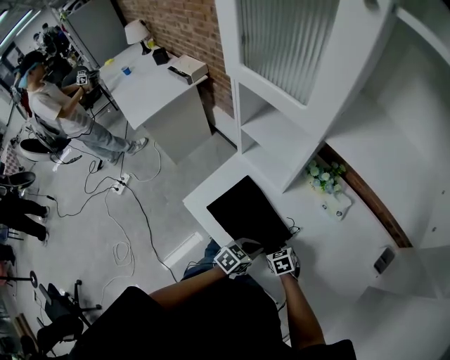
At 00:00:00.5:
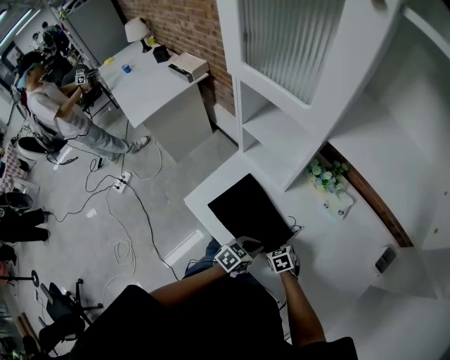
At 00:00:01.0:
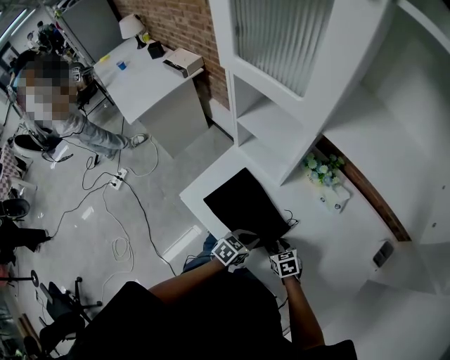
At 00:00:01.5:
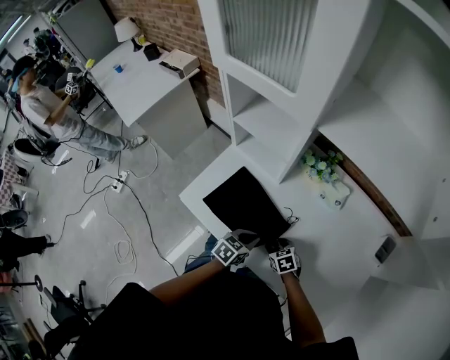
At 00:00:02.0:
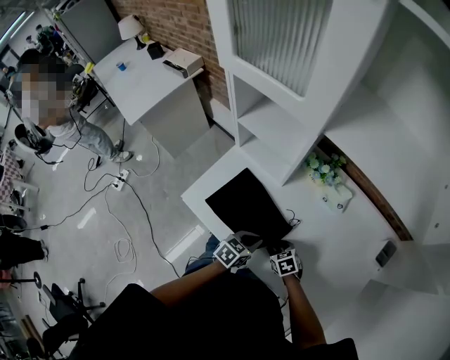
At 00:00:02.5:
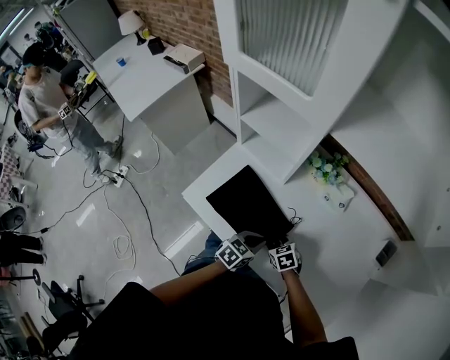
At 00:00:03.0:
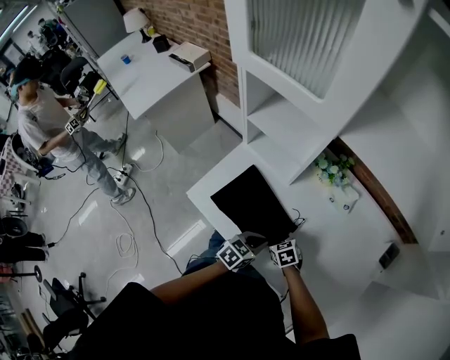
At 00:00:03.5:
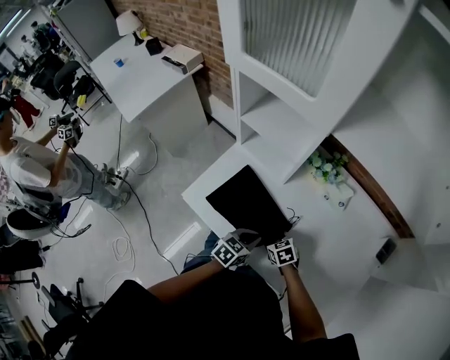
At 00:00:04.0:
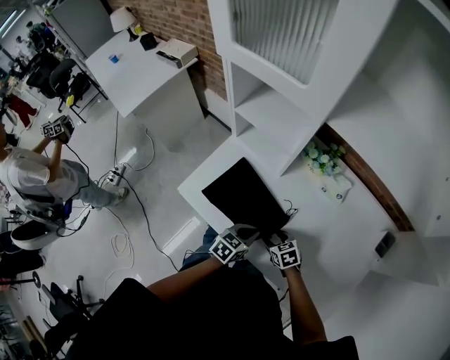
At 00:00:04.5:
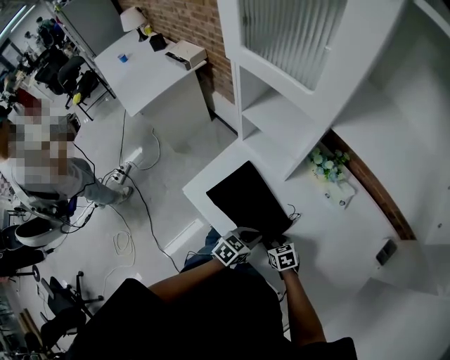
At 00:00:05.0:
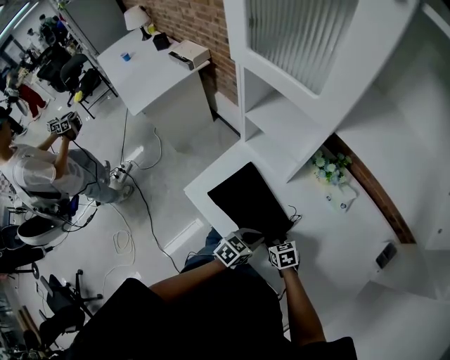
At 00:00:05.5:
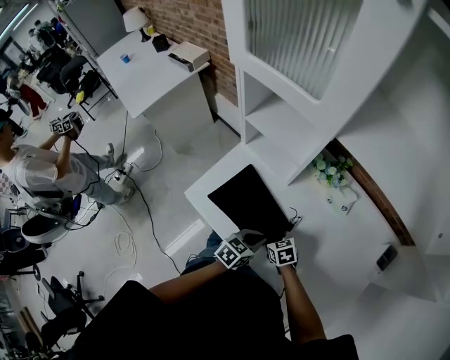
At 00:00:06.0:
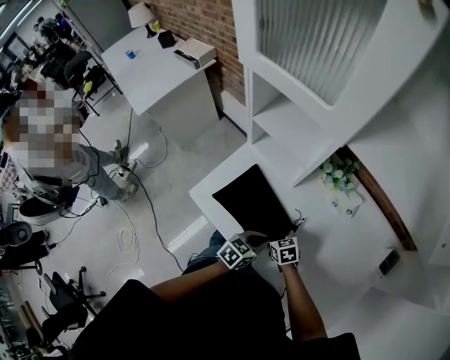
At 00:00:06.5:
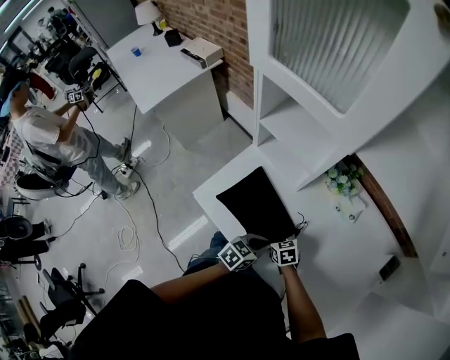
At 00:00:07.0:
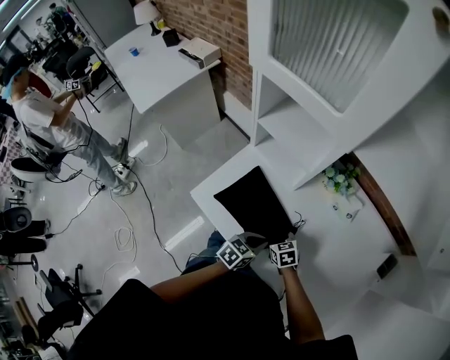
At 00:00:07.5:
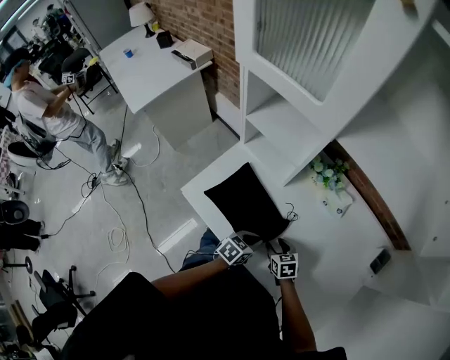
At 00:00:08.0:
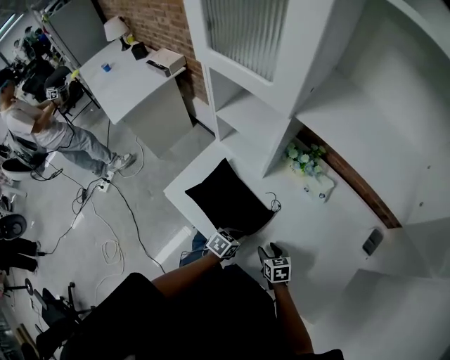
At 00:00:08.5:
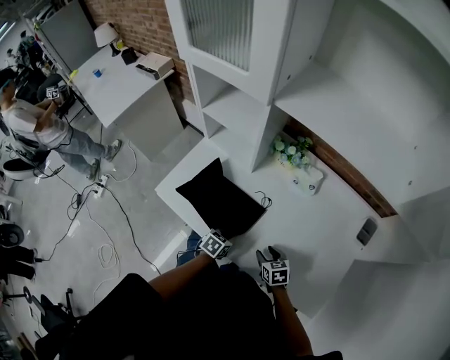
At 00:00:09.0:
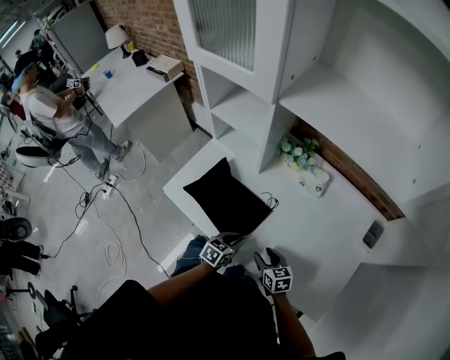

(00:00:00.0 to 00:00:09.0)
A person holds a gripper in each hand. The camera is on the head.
00:00:00.0 - 00:00:04.5: The grippers stay close to where they were, moving slightly.
00:00:04.5 - 00:00:07.0: The right gripper goes roughly 5 cm forward.
00:00:07.0 - 00:00:09.0: The right gripper shifts some 20 cm to the right and backward, and changes its angle by about 20 degrees. Meanwhile the left gripper goes some 10 cm downward, backward and to the right.

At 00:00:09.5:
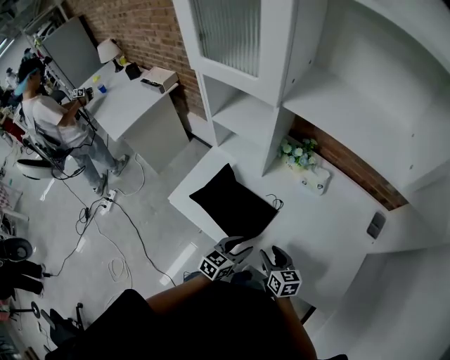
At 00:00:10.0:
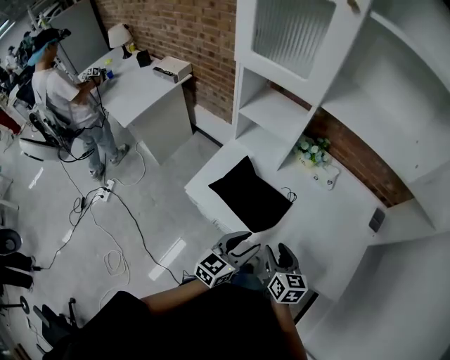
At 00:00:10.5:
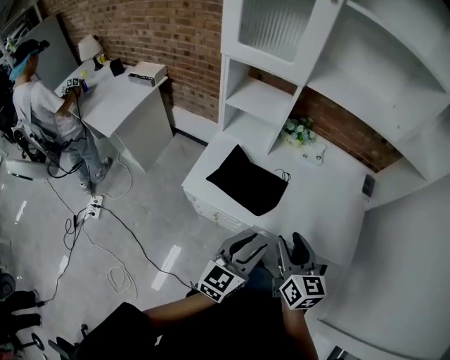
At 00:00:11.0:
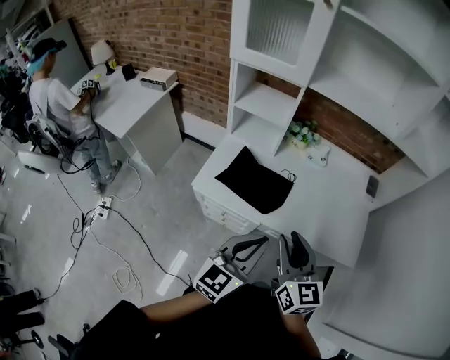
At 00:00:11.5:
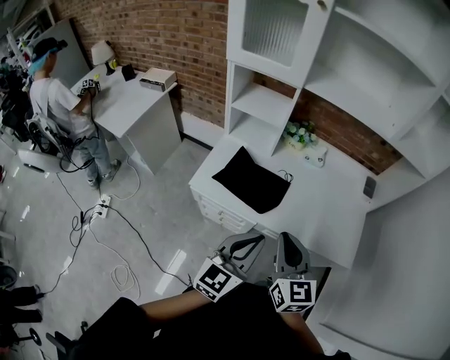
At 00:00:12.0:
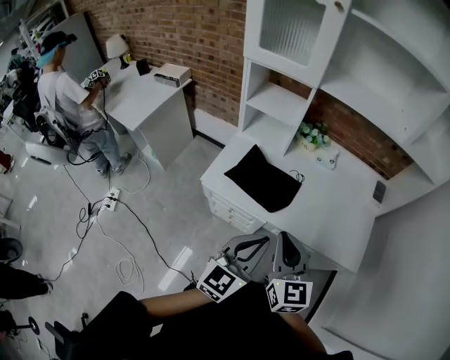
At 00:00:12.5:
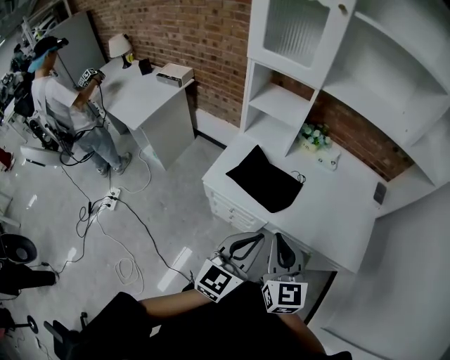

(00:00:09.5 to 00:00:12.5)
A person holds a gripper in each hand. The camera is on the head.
00:00:09.5 - 00:00:11.0: The right gripper goes roughly 35 cm upward, backward and to the left, and rotates about 30 degrees; the left gripper is displaced upward and backward by approximately 35 cm, rotates approximately 30 degrees, and closes.
00:00:11.0 - 00:00:12.5: The right gripper closes its fingers.

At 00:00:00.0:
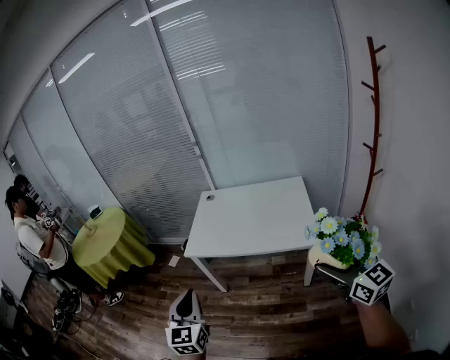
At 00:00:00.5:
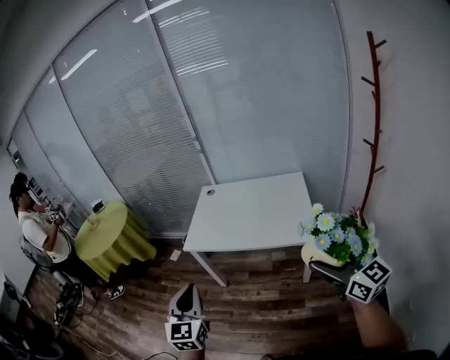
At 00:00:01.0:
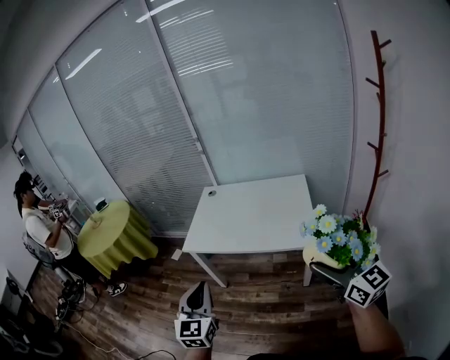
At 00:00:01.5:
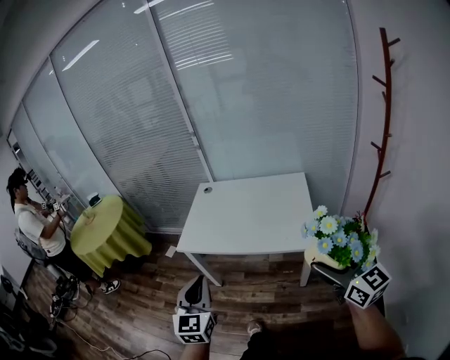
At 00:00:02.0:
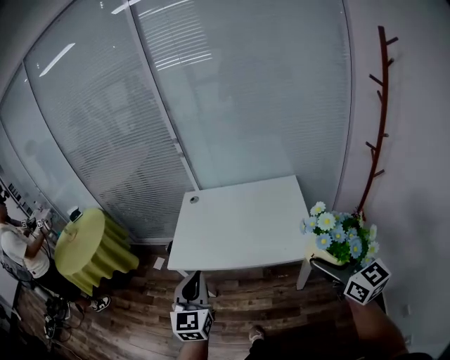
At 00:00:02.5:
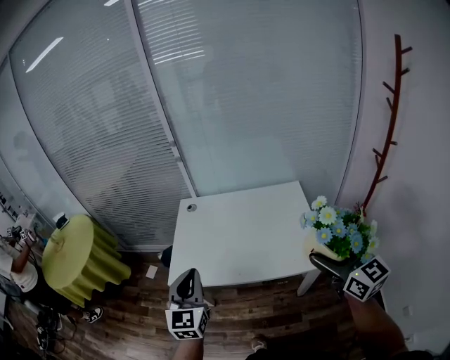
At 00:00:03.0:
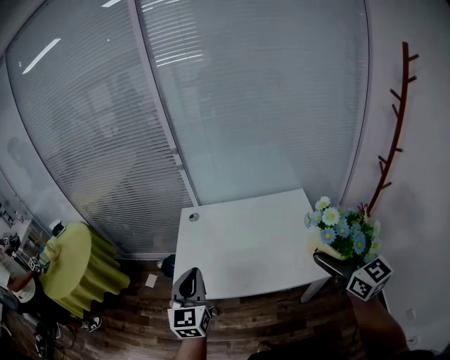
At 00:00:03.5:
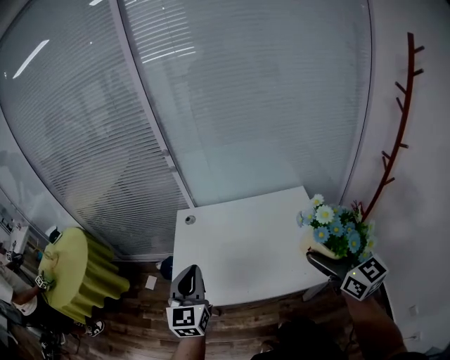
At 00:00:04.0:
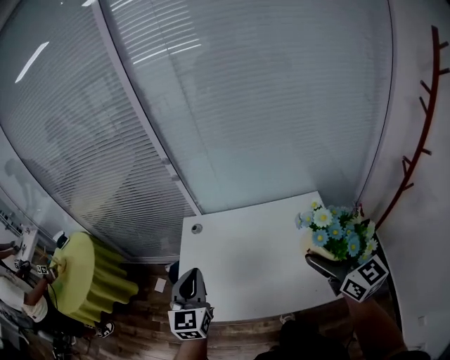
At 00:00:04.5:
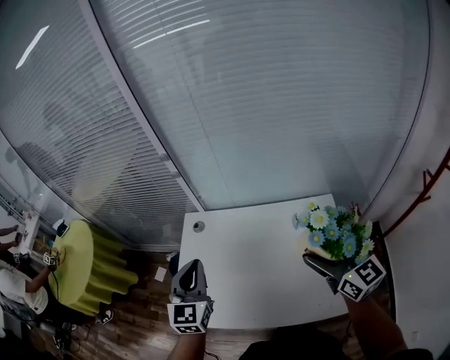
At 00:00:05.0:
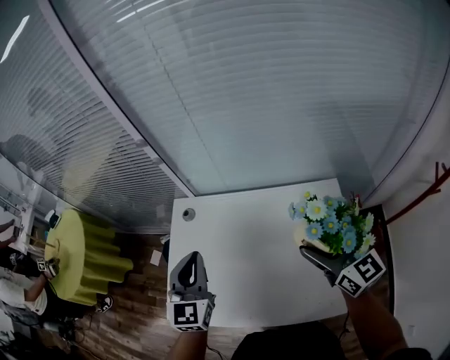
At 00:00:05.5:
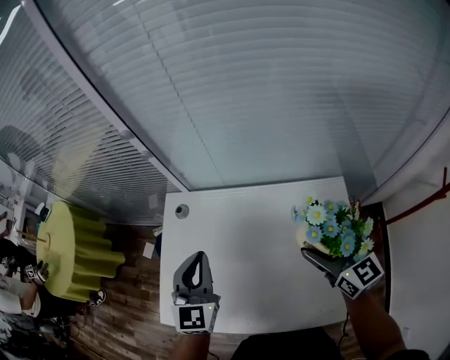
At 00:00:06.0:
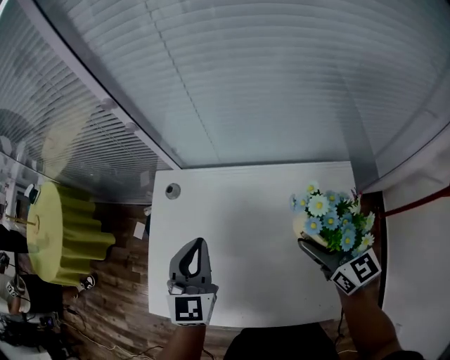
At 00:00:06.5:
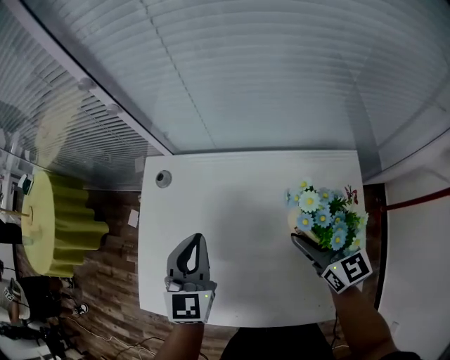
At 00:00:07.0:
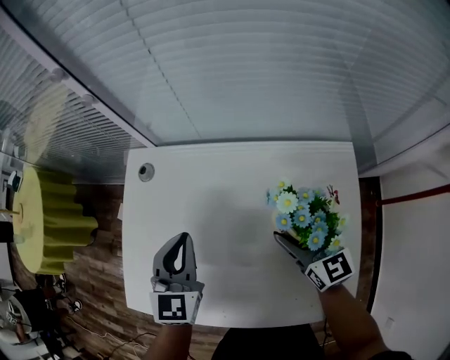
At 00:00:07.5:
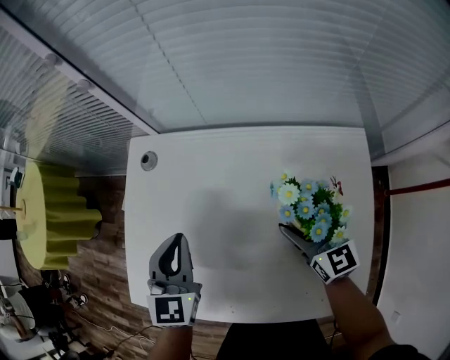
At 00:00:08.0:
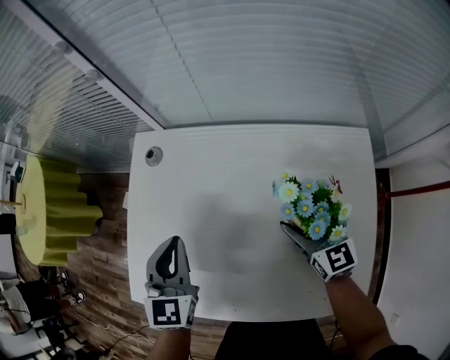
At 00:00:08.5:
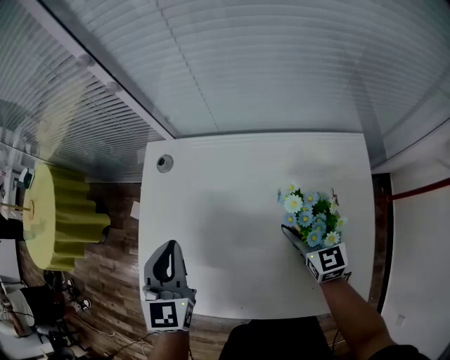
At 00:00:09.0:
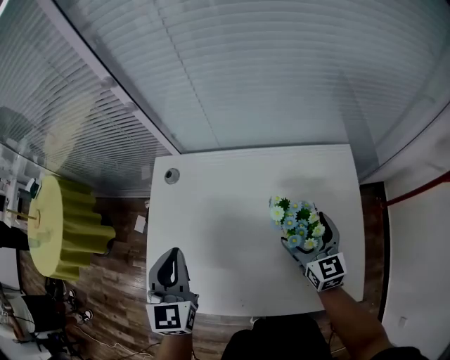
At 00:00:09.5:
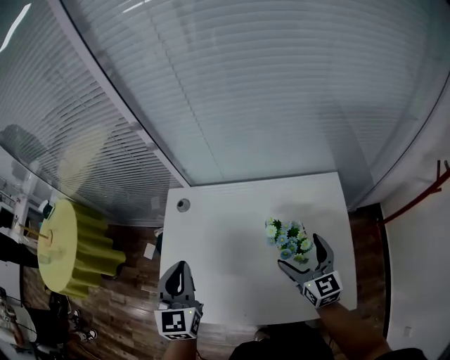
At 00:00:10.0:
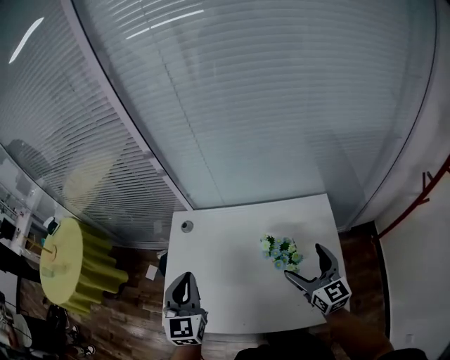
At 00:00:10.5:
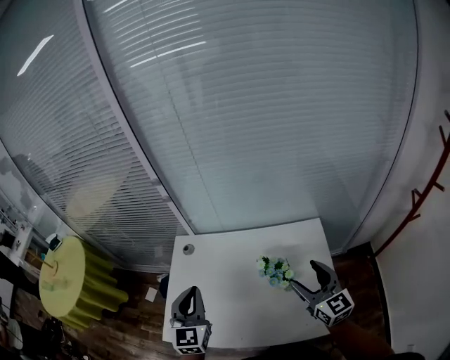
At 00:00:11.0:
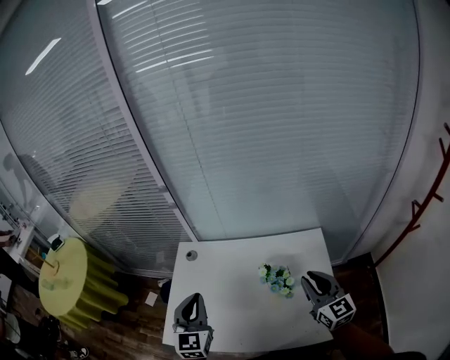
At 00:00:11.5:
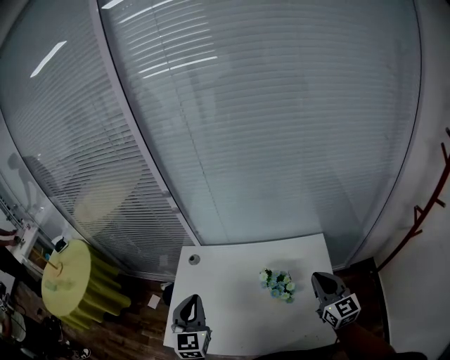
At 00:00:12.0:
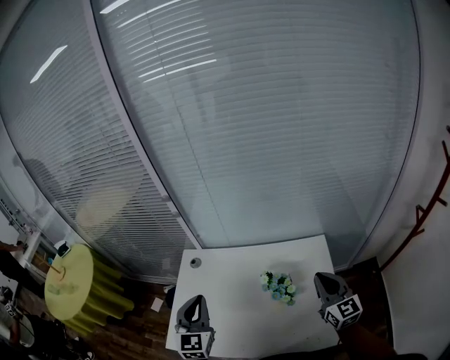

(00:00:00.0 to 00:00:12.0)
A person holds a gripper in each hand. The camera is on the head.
00:00:00.0 - 00:00:02.0: The right gripper heads forward, covering approximately 10 cm, while the left gripper heads forward and to the right, covering approximately 20 cm.
00:00:02.0 - 00:00:04.0: The two grippers go approximately 30 cm forward.
00:00:04.0 - 00:00:06.0: The left gripper shifts about 20 cm forward, to the right and downward; the right gripper heads forward and downward, covering about 25 cm.
00:00:06.0 - 00:00:08.0: The right gripper moves downward, about 15 cm. The left gripper goes approximately 10 cm downward.
00:00:08.0 - 00:00:10.0: The left gripper heads upward, covering roughly 15 cm. The right gripper travels upward and backward by roughly 20 cm.
00:00:10.0 - 00:00:12.0: The right gripper travels to the right by approximately 5 cm, and closes.

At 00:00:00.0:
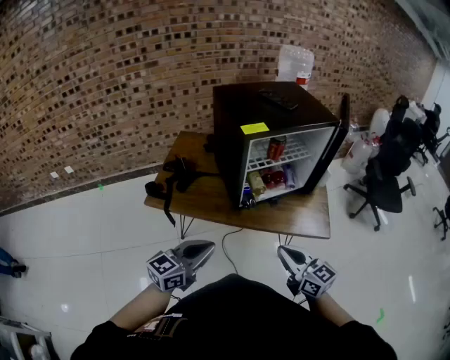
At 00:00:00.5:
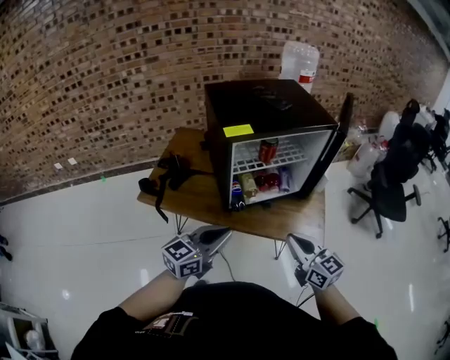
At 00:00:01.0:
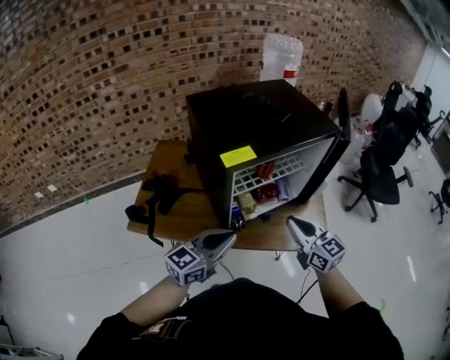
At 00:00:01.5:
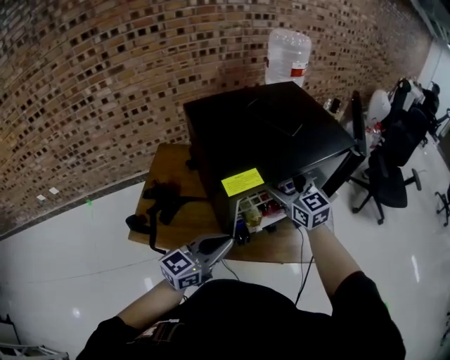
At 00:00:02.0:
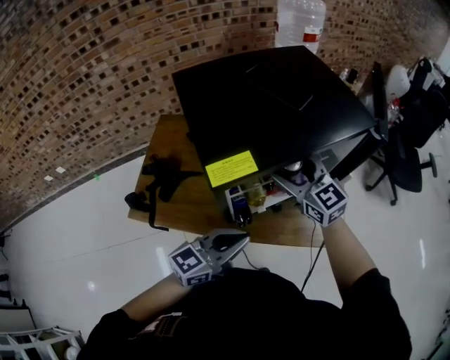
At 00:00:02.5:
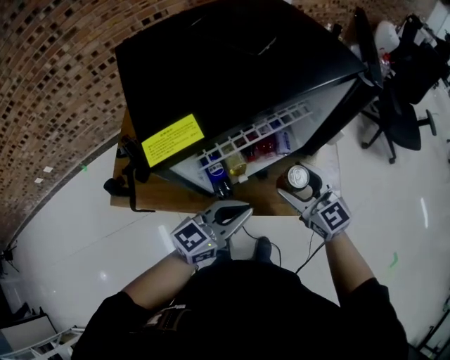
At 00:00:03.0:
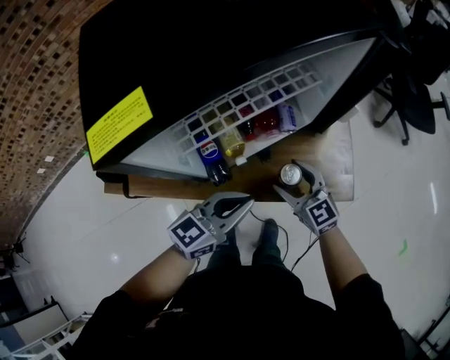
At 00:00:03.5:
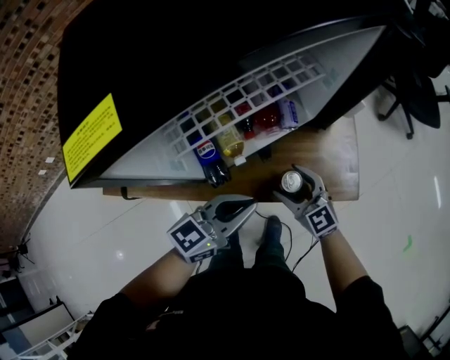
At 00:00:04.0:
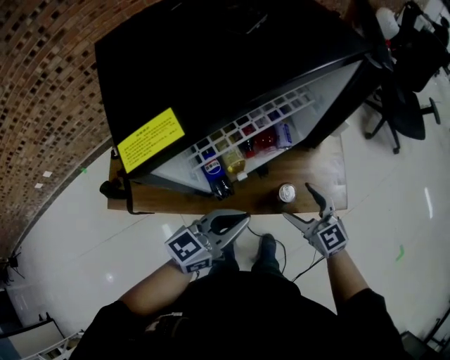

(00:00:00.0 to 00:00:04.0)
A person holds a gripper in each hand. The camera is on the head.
00:00:00.0 - 00:00:02.0: The left gripper moves forward and to the right, some 30 cm. Meanwhile the right gripper moves forward, about 40 cm, turns by some 20 degrees, and opens its fingers.
00:00:02.0 - 00:00:04.0: The right gripper is displaced downward, to the right and backward by approximately 30 cm, while the left gripper shifts approximately 10 cm downward and to the right.
